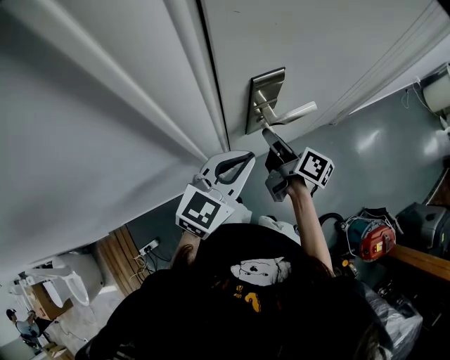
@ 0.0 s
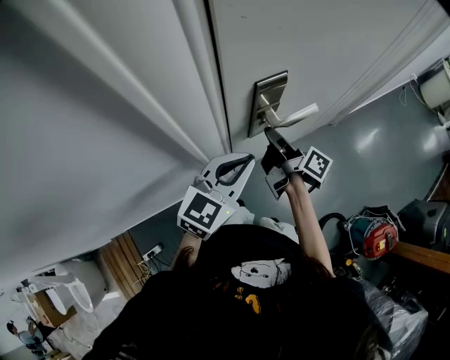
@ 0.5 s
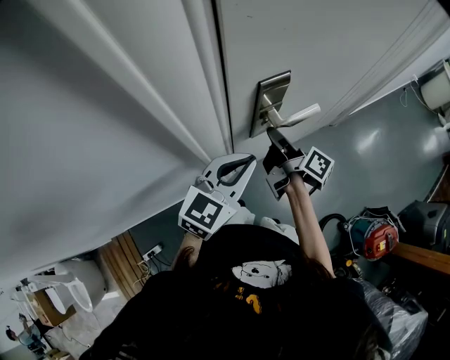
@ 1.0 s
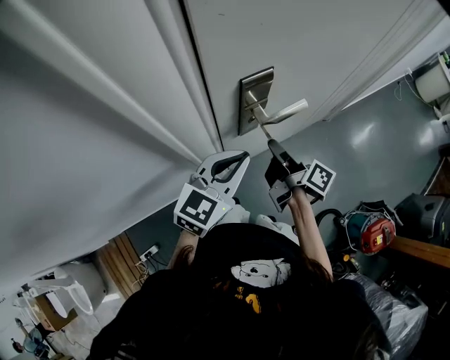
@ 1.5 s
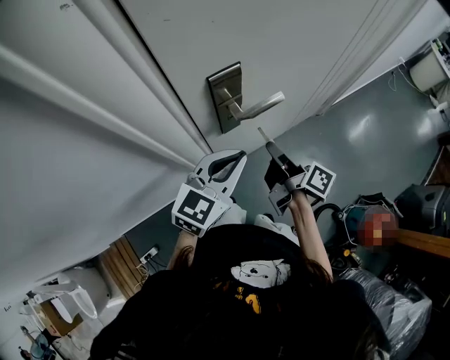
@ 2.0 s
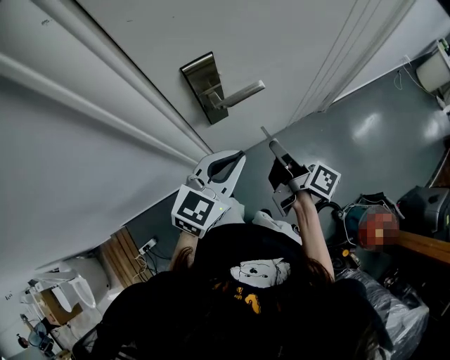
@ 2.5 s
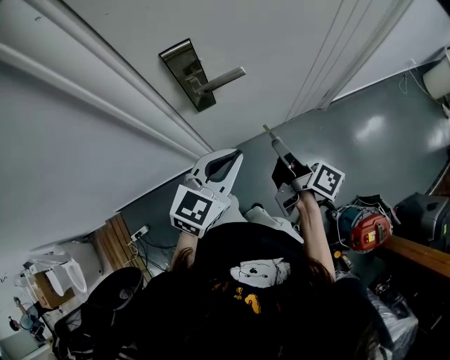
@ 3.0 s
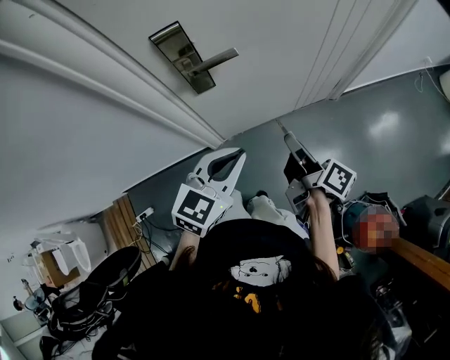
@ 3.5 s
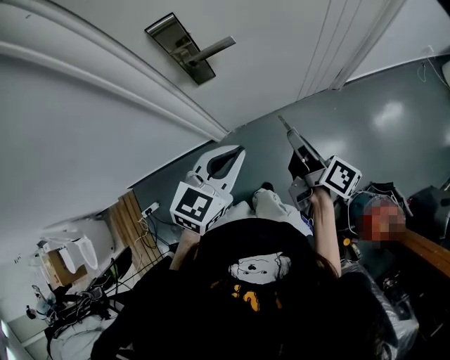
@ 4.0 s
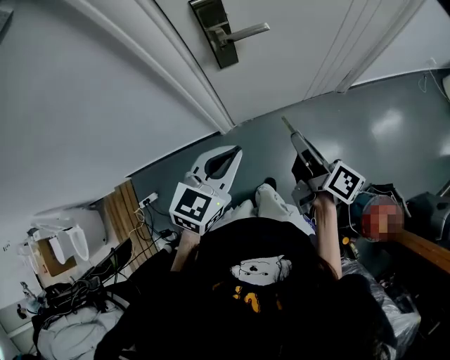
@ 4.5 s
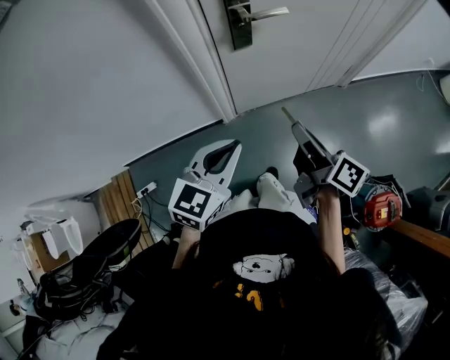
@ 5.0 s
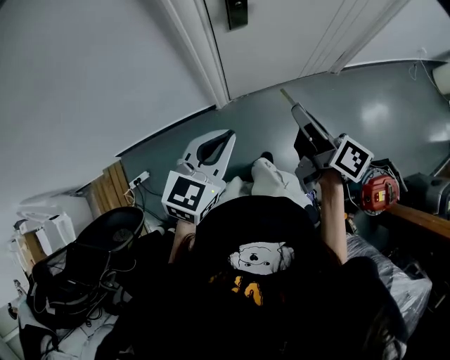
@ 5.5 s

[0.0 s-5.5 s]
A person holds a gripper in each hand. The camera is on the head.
0.0 to 2.0 s: The right gripper moves to the right, approximately 10 cm.
2.0 to 3.5 s: Both grippers move to the right and backward, about 15 cm.
3.5 to 5.5 s: The two grippers go approximately 20 cm backward and to the left.

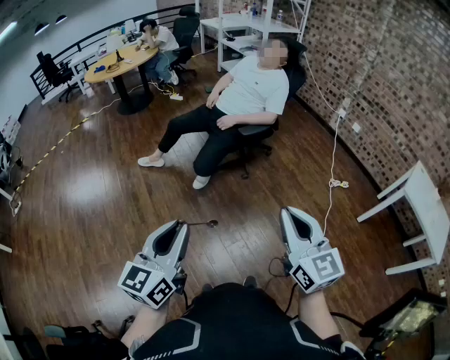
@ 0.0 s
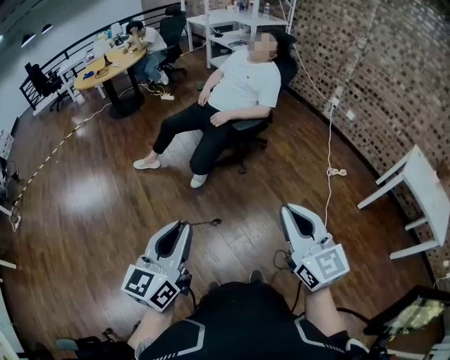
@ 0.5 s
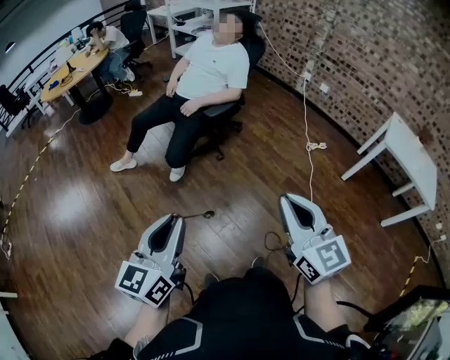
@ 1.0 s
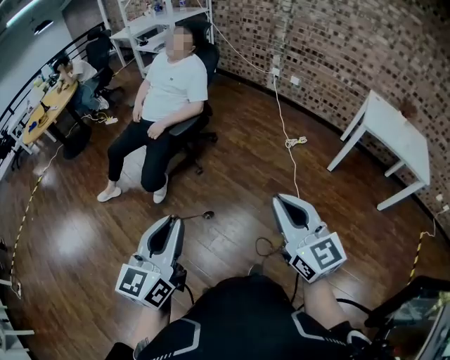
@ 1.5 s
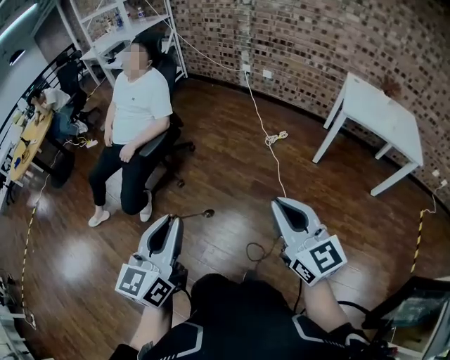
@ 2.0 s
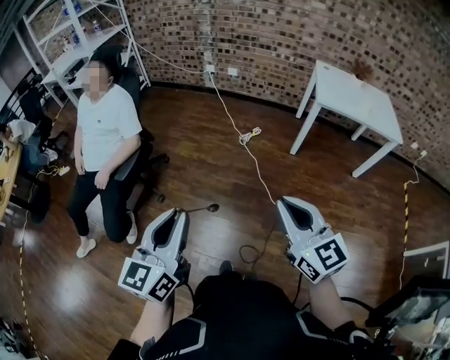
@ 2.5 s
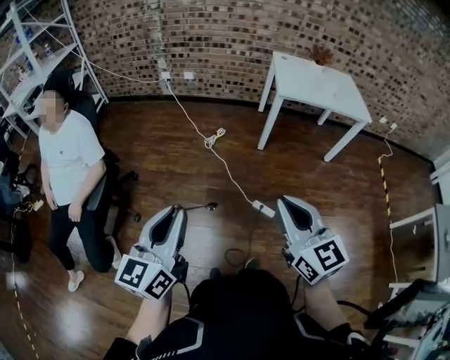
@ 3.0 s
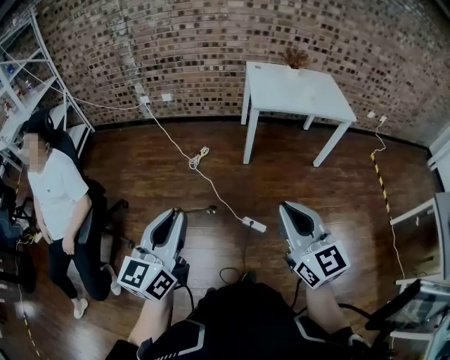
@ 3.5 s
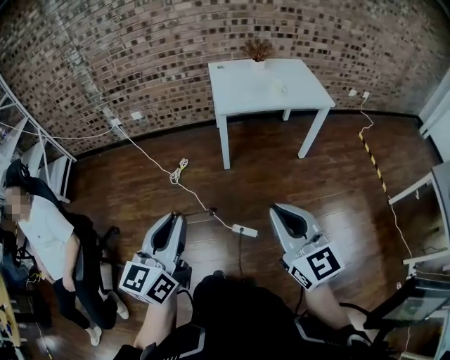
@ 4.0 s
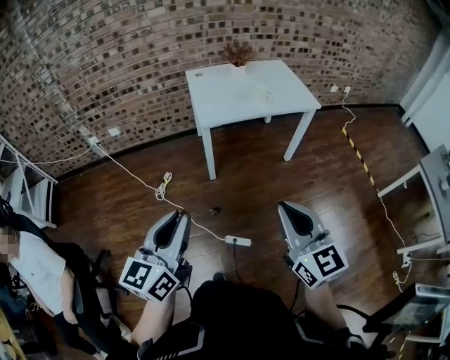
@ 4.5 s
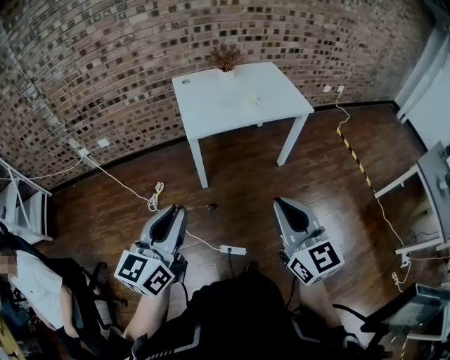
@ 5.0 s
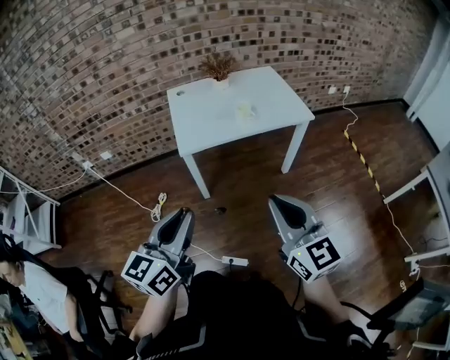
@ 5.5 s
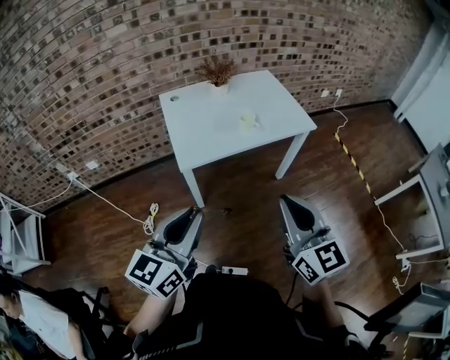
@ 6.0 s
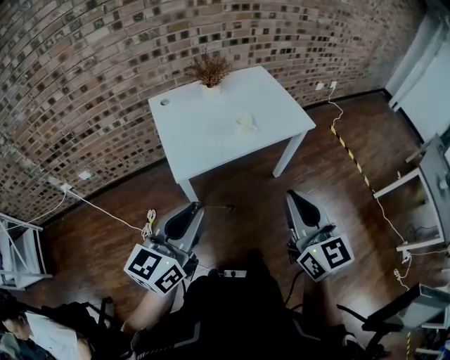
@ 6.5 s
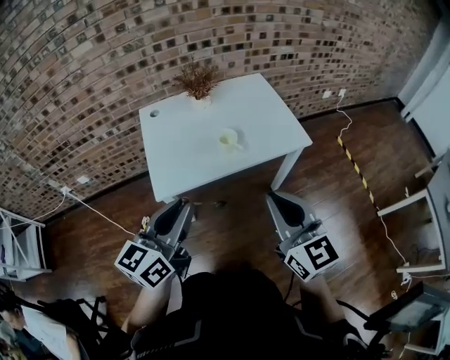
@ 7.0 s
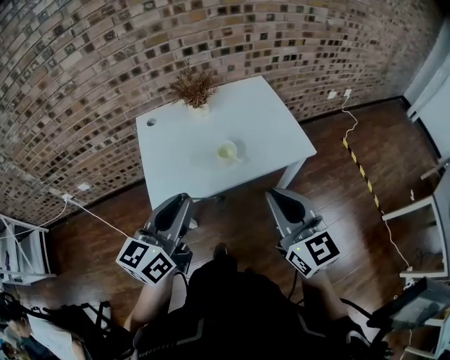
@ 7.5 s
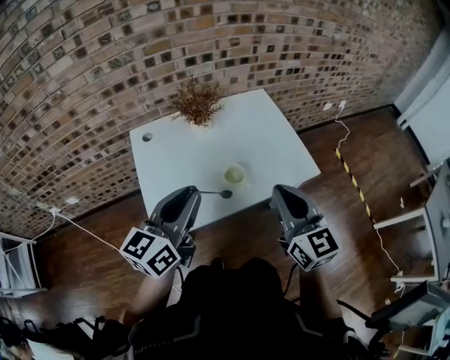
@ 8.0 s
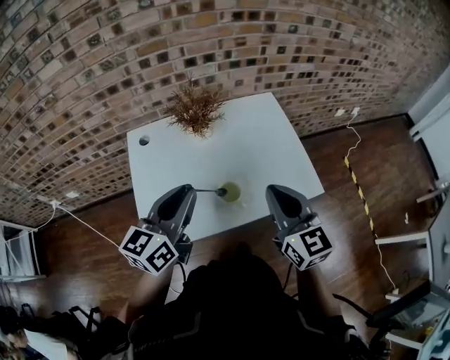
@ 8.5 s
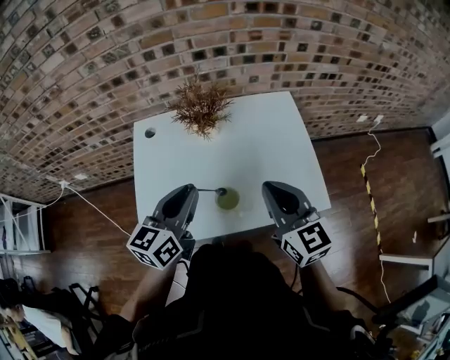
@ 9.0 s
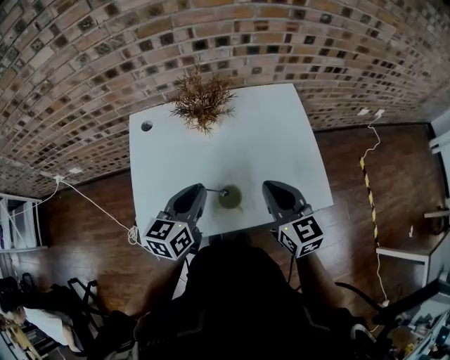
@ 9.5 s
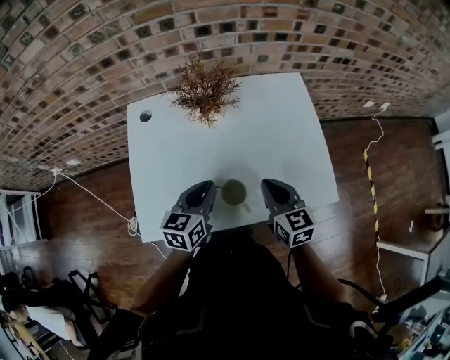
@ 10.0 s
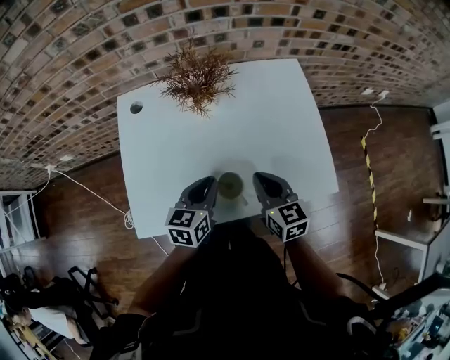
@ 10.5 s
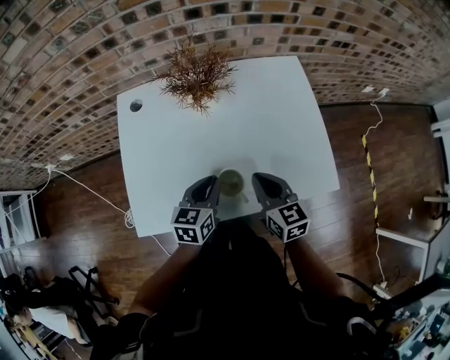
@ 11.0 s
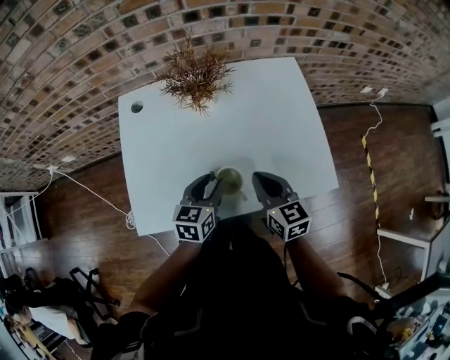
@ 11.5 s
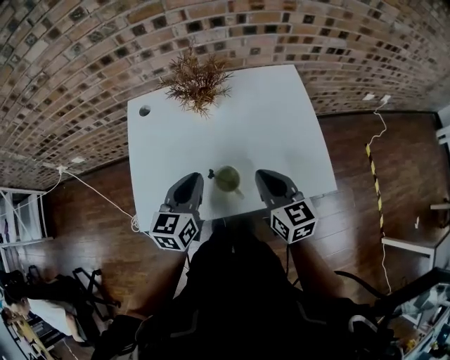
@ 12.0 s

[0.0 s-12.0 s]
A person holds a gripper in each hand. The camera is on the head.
0.0 to 2.0 s: The right gripper is displaced to the right by some 30 cm, and swivels roughly 20 degrees. The left gripper goes some 35 cm to the right and forward, and turns by about 30 degrees.
2.0 to 4.0 s: The left gripper shifts by some 50 cm, and changes its angle by roughly 40 degrees. The right gripper changes place by some 35 cm, and swivels approximately 40 degrees.
4.0 to 6.0 s: Both grippers move forward, about 35 cm. The left gripper changes its angle by about 20 degrees.
6.0 to 8.0 s: The grippers both shift forward by some 35 cm.
8.0 to 10.0 s: Both grippers travel together downward and forward, some 30 cm. The right gripper turns by approximately 30 degrees, while the left gripper rotates roughly 30 degrees.
10.0 to 12.0 s: The left gripper opens, then closes once more.

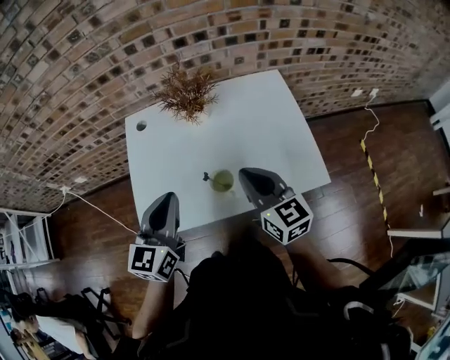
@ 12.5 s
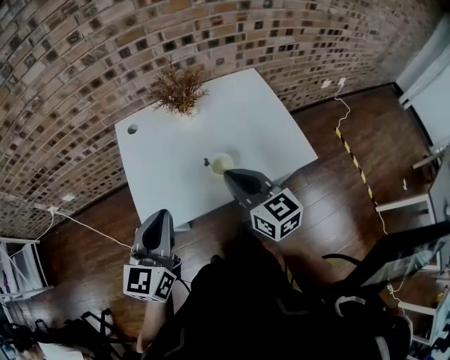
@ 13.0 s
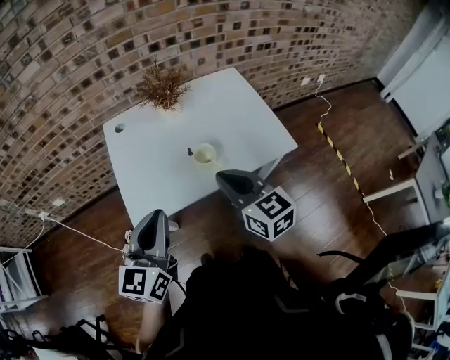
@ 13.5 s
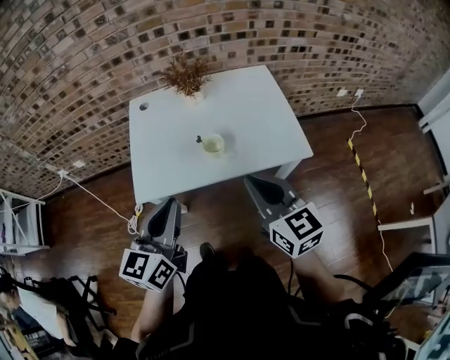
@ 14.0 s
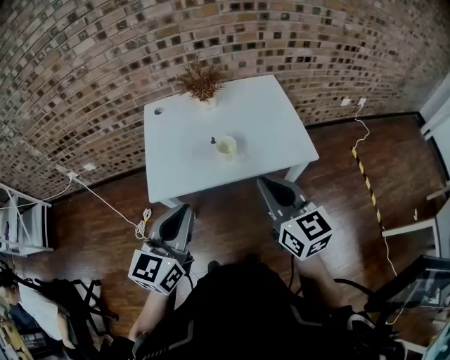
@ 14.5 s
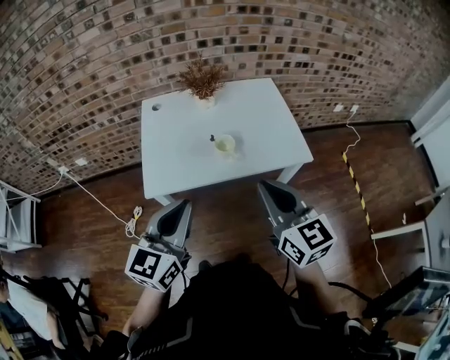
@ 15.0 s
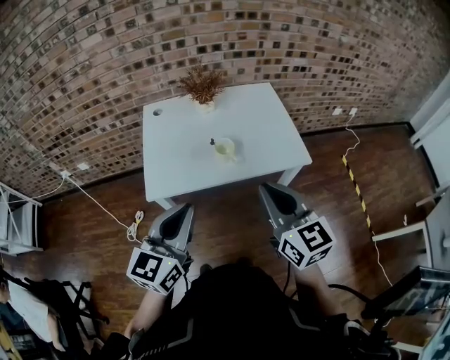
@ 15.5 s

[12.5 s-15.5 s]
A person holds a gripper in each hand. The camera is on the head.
12.5 to 14.0 s: Both grippers move backward, about 20 cm.
14.0 to 15.5 s: Both grippers move backward, some 5 cm.

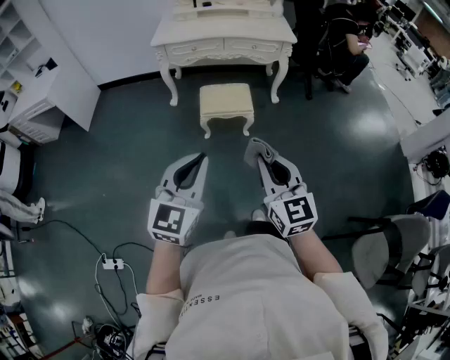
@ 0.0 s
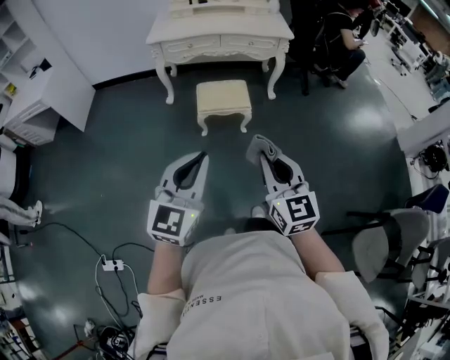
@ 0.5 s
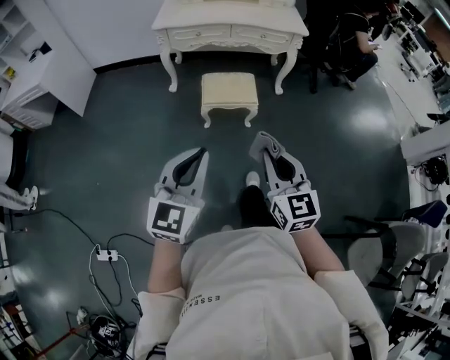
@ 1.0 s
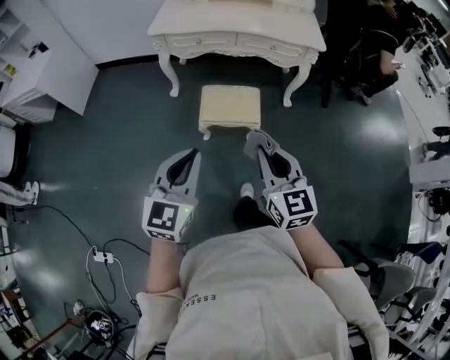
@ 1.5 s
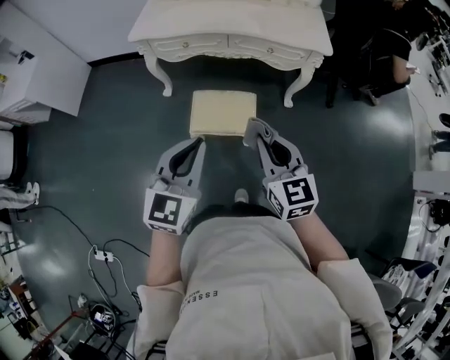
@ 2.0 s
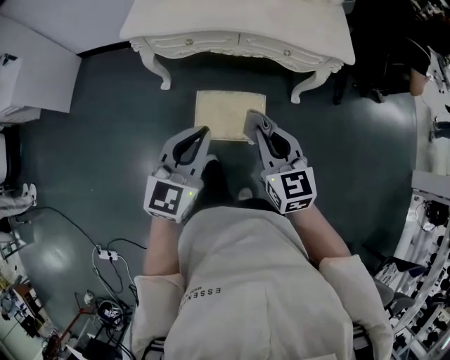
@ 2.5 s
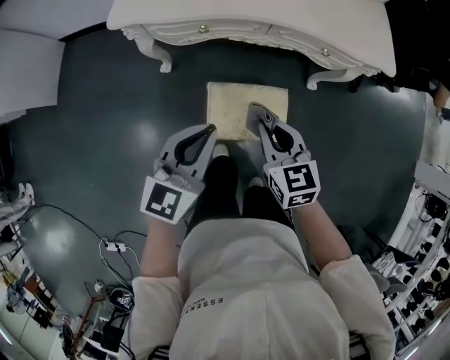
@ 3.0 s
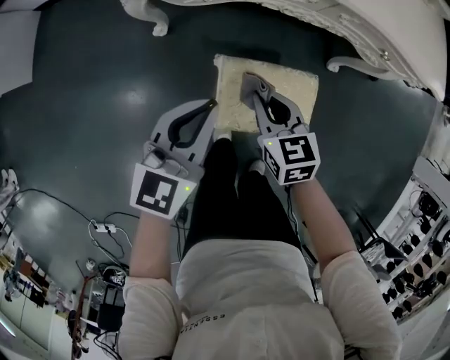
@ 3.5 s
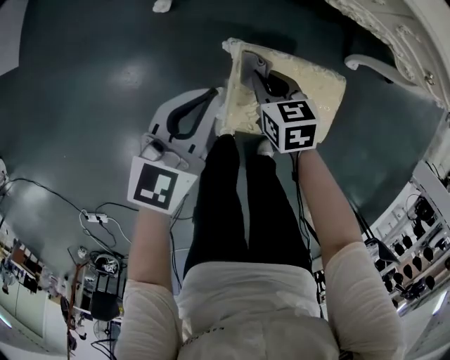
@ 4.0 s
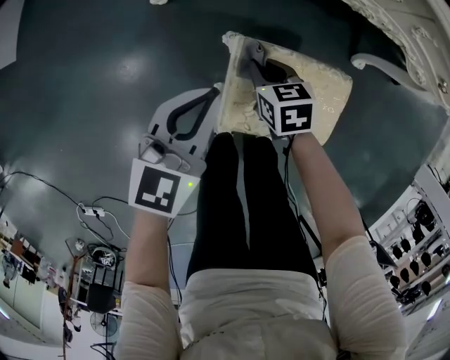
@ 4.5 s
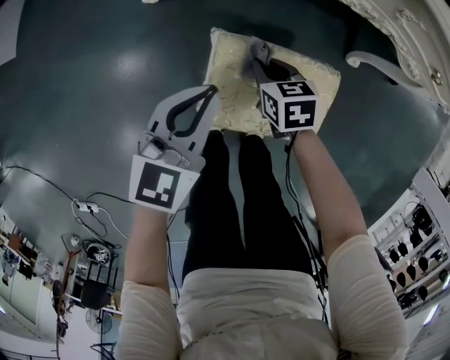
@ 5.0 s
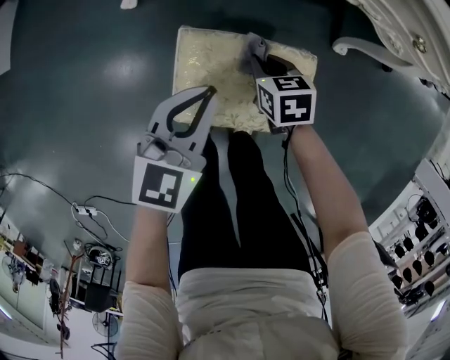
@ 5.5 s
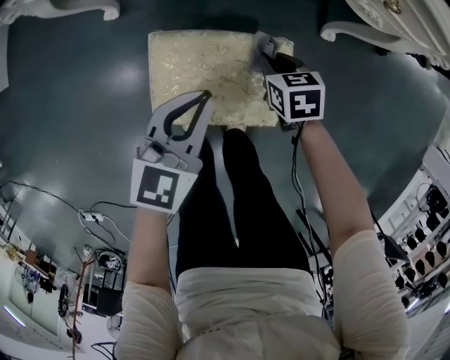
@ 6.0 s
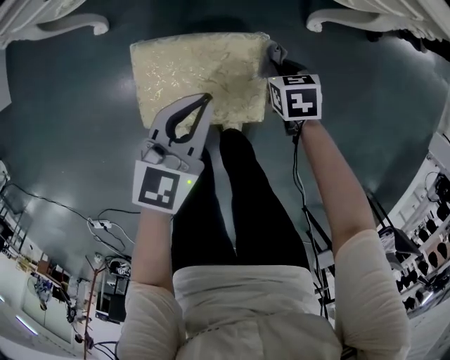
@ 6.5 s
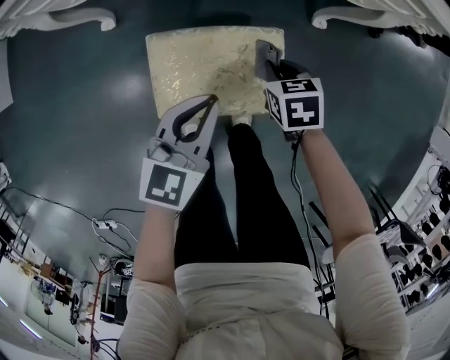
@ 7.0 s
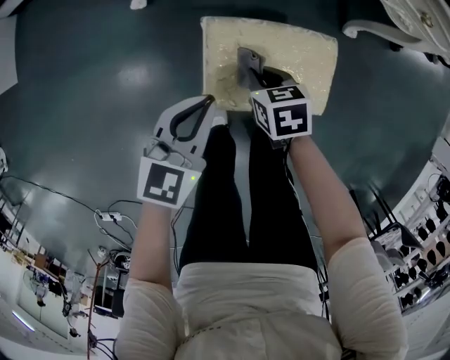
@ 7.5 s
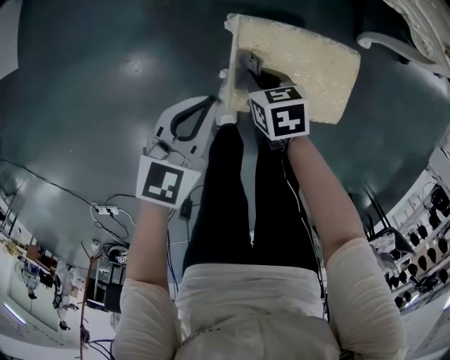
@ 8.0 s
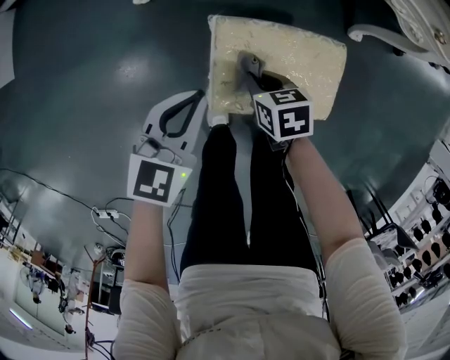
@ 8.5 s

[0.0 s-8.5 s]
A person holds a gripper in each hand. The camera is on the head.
0.0 to 2.0 s: Both grippers are carried forward, approximately 40 cm.
2.0 to 4.0 s: The two grippers go some 60 cm downward, forward and to the left. The left gripper changes its angle by roughly 20 degrees. The right gripper tips its fingers downward by roughly 40 degrees.
4.0 to 6.5 s: The grippers both shift to the right by approximately 30 cm.
6.5 to 8.5 s: Both grippers travel together to the left, roughly 25 cm.
